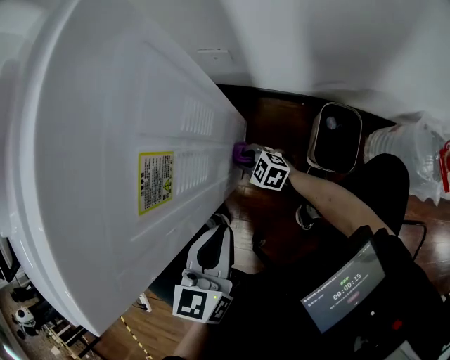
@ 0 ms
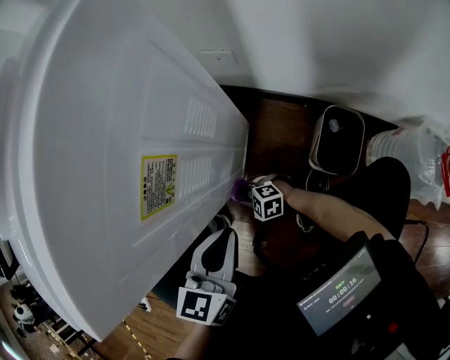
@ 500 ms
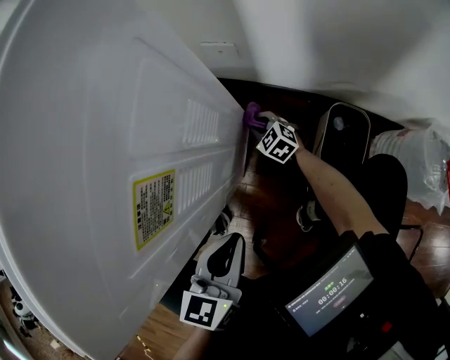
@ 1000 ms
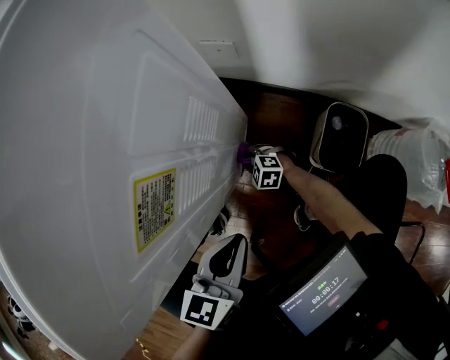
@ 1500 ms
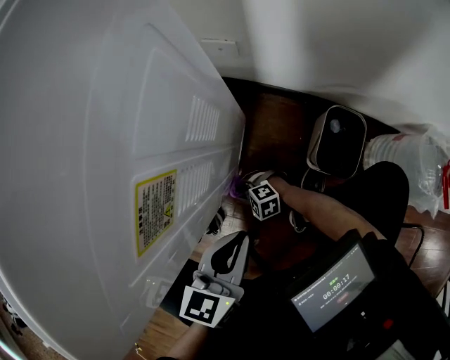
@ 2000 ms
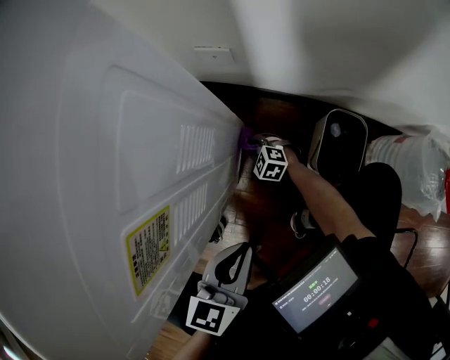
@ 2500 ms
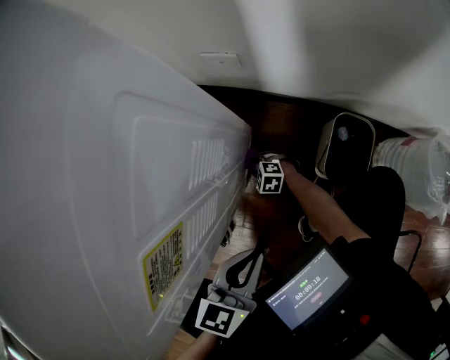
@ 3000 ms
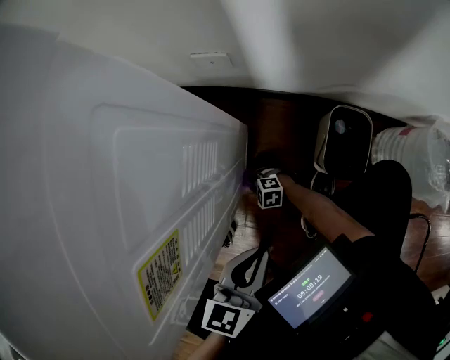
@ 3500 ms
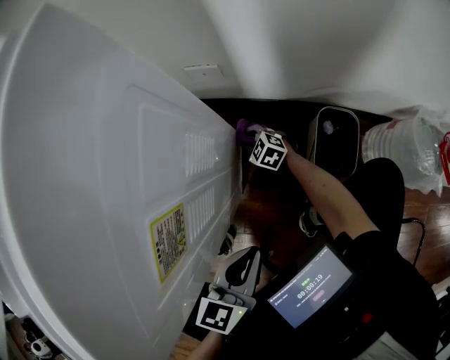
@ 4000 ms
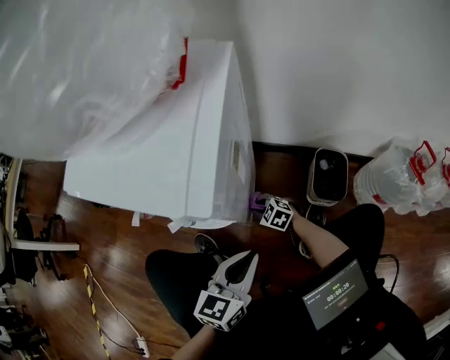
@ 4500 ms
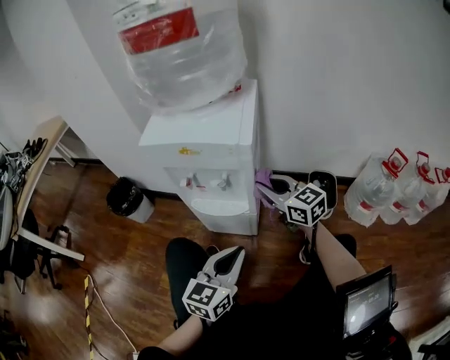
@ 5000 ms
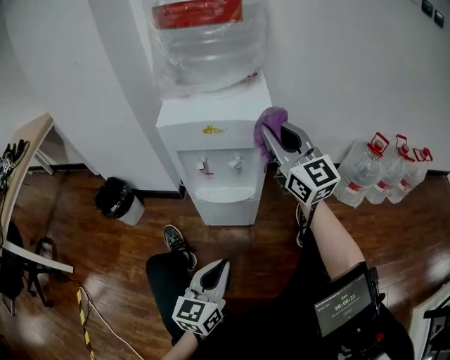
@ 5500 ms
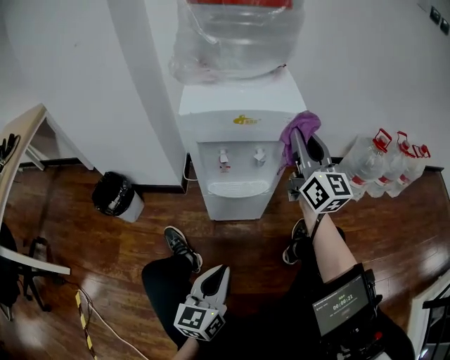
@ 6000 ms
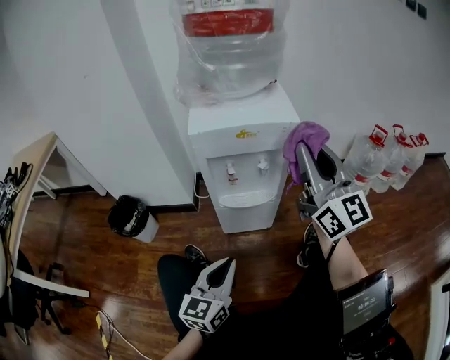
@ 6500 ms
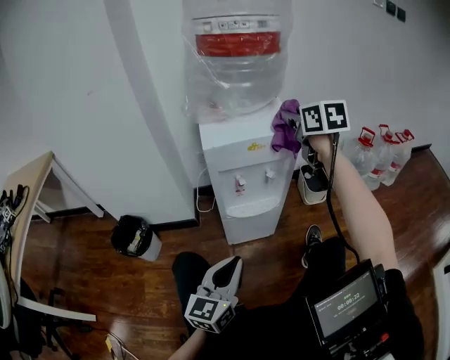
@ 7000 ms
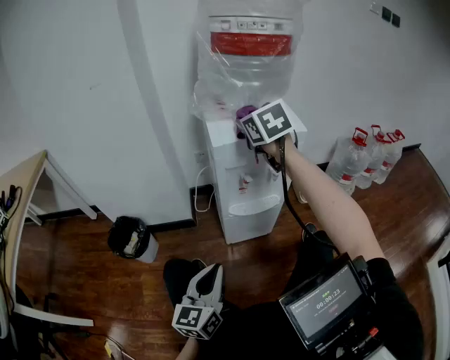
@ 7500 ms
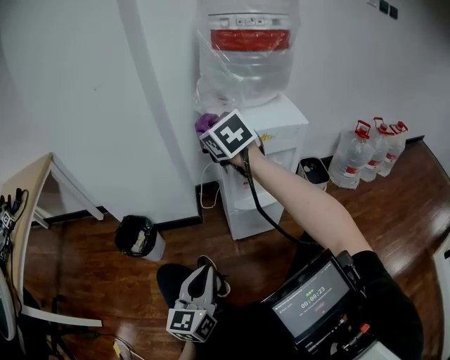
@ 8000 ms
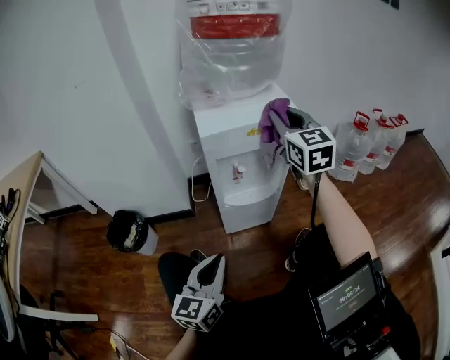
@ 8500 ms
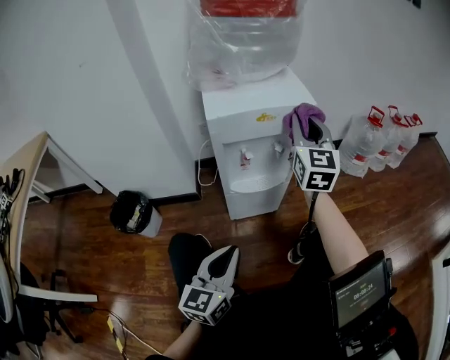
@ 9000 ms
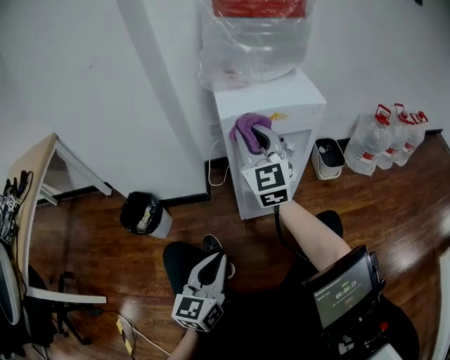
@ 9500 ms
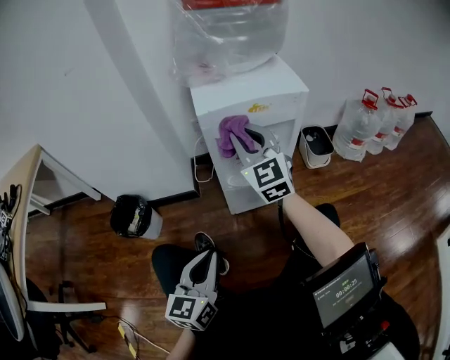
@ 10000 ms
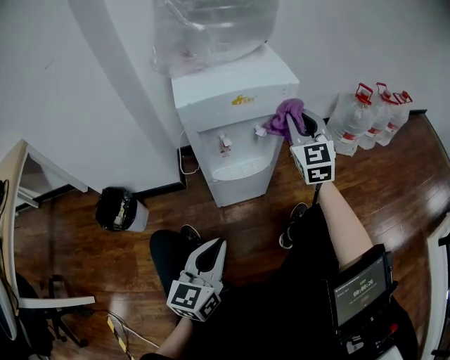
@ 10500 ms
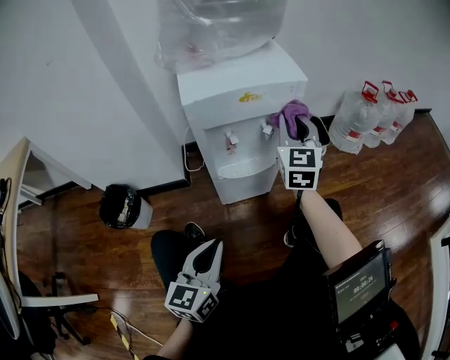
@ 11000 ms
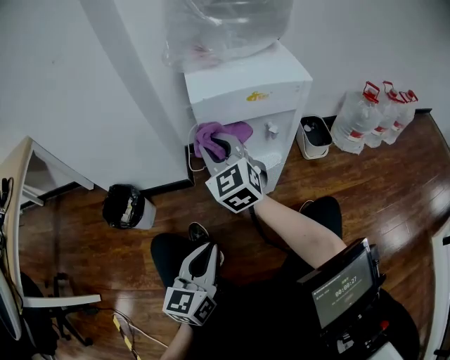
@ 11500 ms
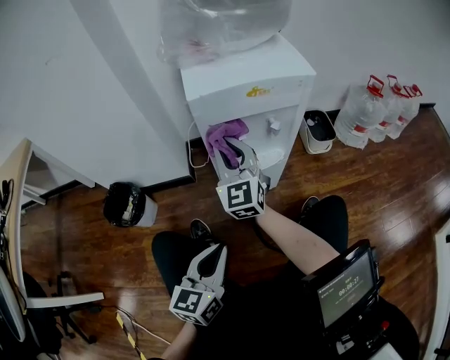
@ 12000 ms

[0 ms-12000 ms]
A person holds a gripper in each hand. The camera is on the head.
0 ms to 2000 ms: The right gripper changes place by some 15 cm, and turns by approximately 40 degrees.
2000 ms to 4000 ms: The right gripper reaches some 10 cm downward, then returns, and swivels about 40 degrees.
4000 ms to 6000 ms: The right gripper heads upward, covering approximately 60 cm, and tips its fingers upward by approximately 70 degrees. The left gripper moves approximately 40 cm, and swivels about 20 degrees.
6000 ms to 8000 ms: The right gripper goes about 30 cm to the left, and tips its fingers downward by about 40 degrees. The left gripper travels to the left and upward by roughly 20 cm.
8000 ms to 10000 ms: The right gripper travels to the right and downward by some 15 cm, and rotates about 30 degrees.
10000 ms to 12000 ms: The right gripper swings left and right, approximately 25 cm each way, with 2 reversals.

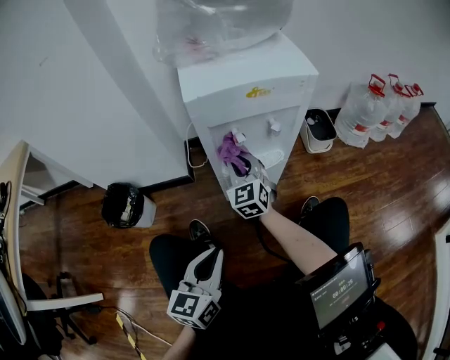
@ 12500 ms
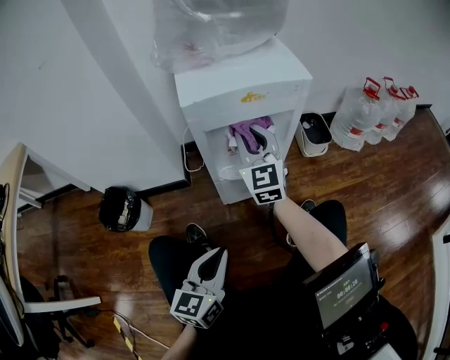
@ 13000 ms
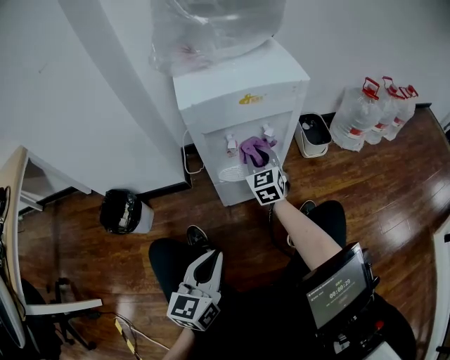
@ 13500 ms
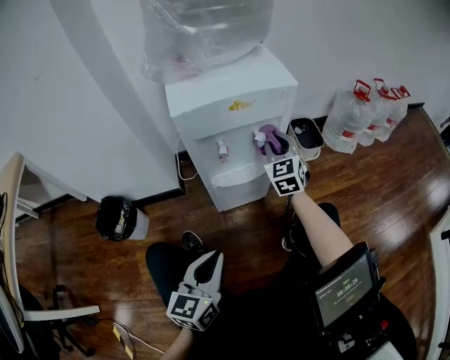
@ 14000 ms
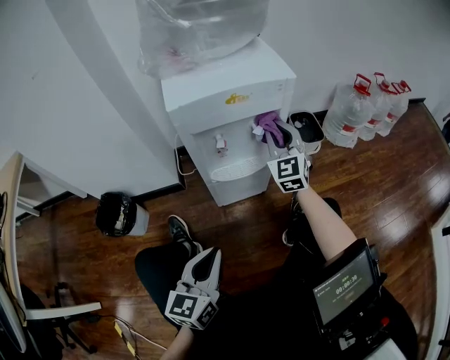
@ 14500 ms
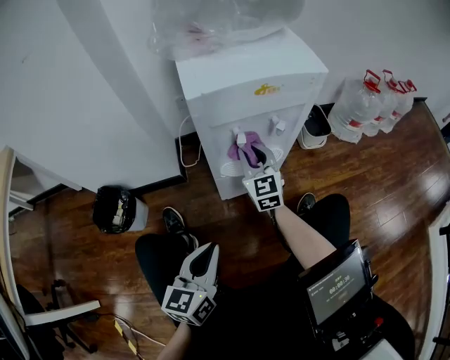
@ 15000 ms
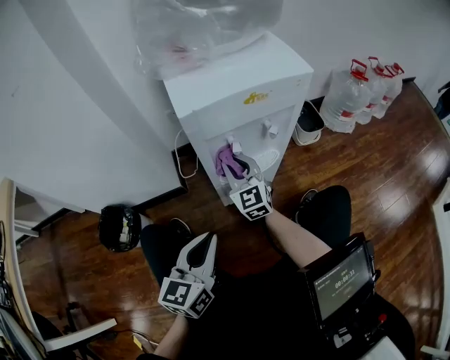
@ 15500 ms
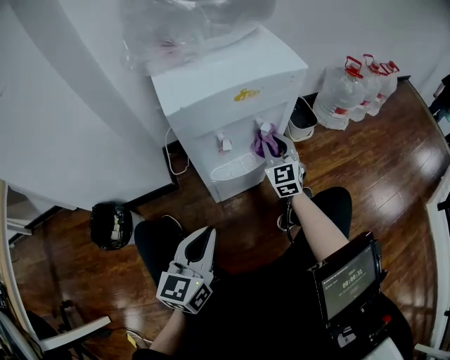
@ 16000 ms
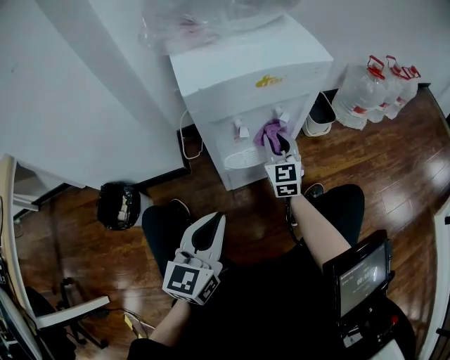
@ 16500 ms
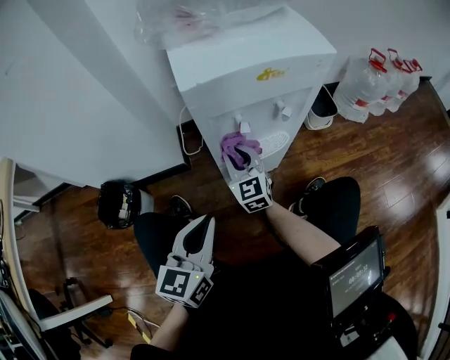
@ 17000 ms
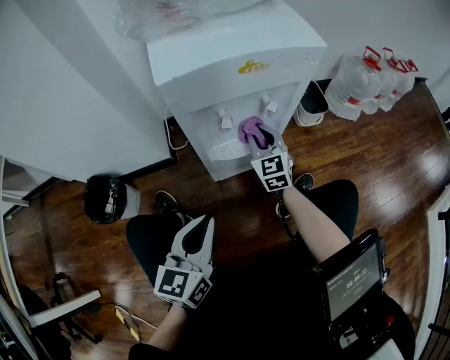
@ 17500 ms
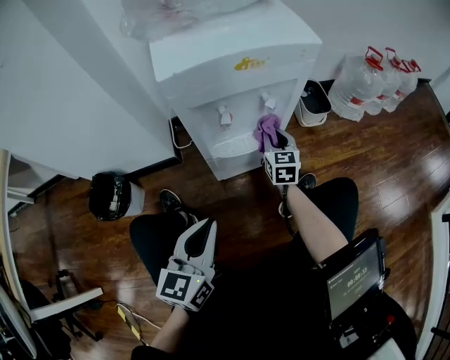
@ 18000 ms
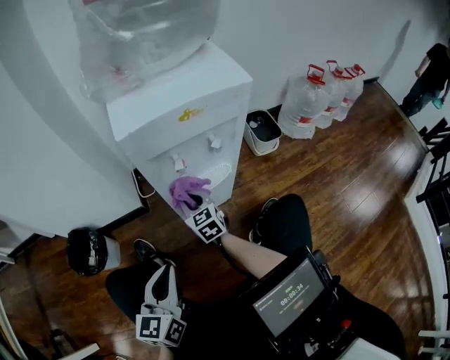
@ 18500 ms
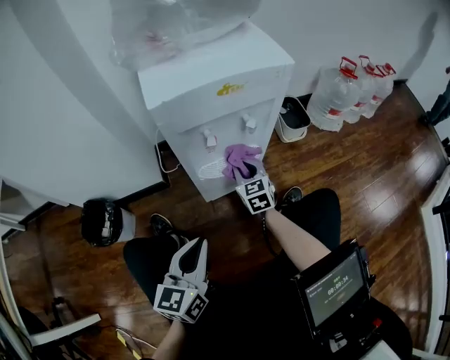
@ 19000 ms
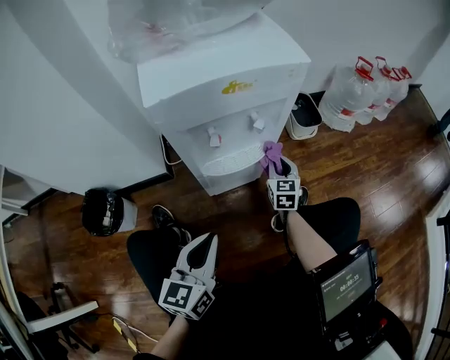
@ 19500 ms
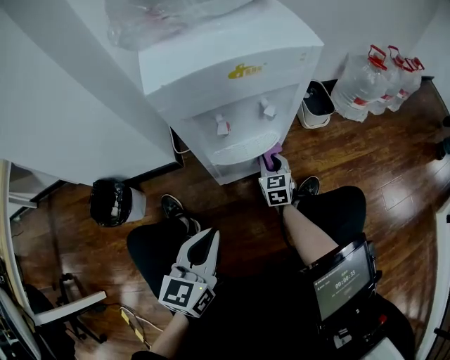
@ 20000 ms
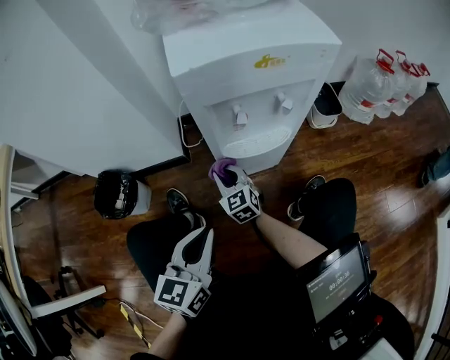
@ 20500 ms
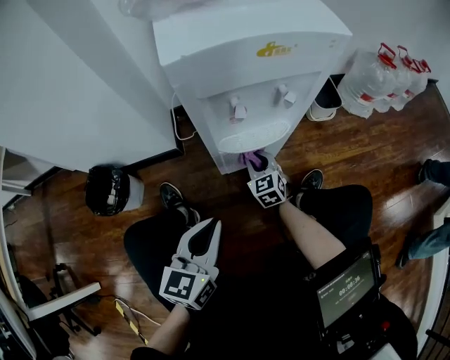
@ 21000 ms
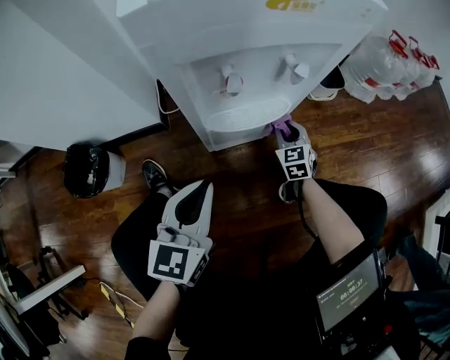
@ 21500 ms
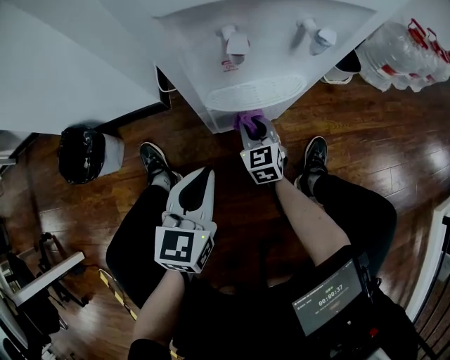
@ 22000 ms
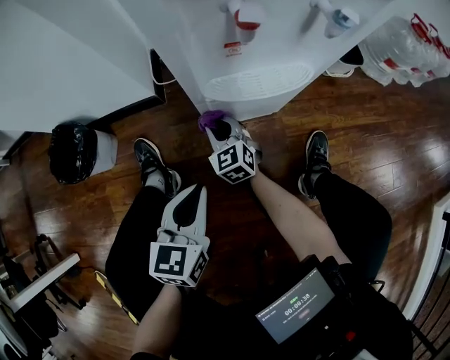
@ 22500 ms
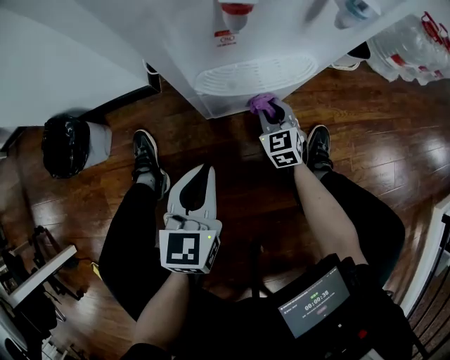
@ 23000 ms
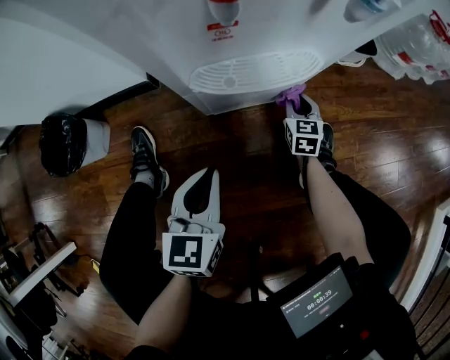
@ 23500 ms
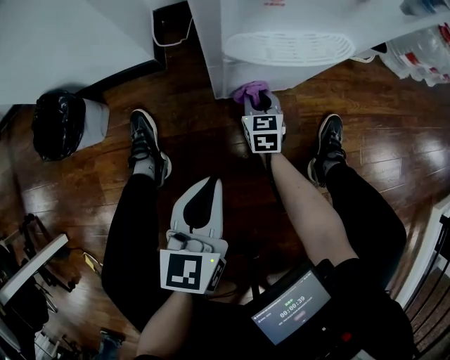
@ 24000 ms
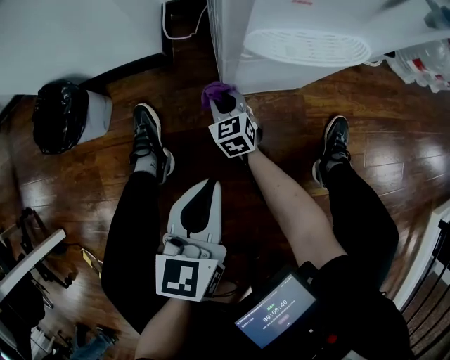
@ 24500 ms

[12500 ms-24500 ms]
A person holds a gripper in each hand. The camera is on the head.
12500 ms to 14500 ms: The right gripper heads to the right and upward, covering some 20 cm.
14500 ms to 16500 ms: The left gripper heads forward, covering about 10 cm. The right gripper swings left and right, approximately 15 cm each way, with 2 reversals.
16500 ms to 18500 ms: The right gripper moves left and right over some 20 cm, changing direction 2 times, and changes its angle by approximately 30 degrees, while the left gripper heads backward, covering roughly 5 cm.
18500 ms to 20500 ms: The right gripper travels to the right and back again, some 25 cm each way.
20500 ms to 22500 ms: The two grippers go about 15 cm downward. The right gripper moves approximately 25 cm to the right and comes back.
22500 ms to 24500 ms: The right gripper is displaced downward by some 10 cm, and travels to the right and back again, about 25 cm each way.

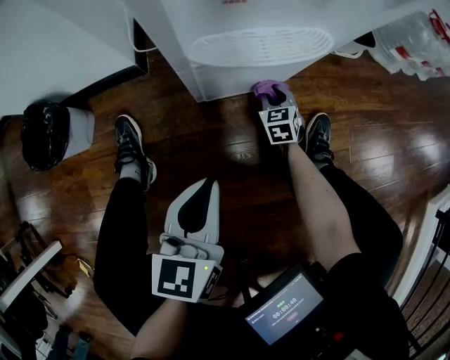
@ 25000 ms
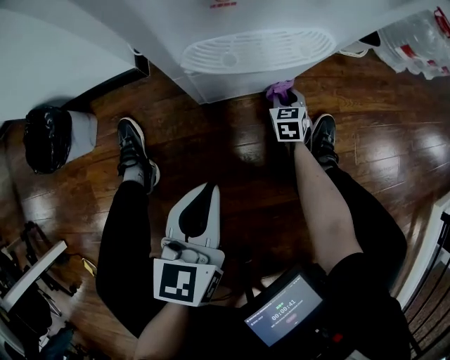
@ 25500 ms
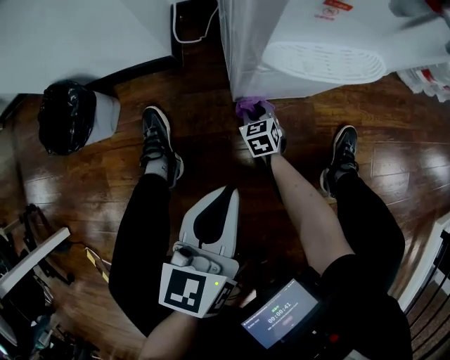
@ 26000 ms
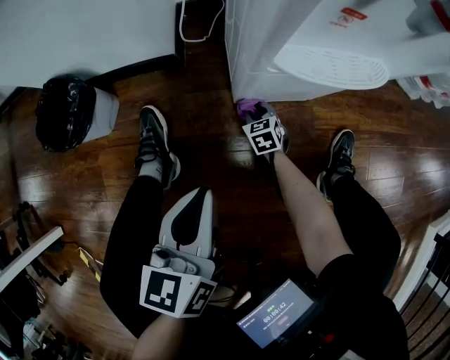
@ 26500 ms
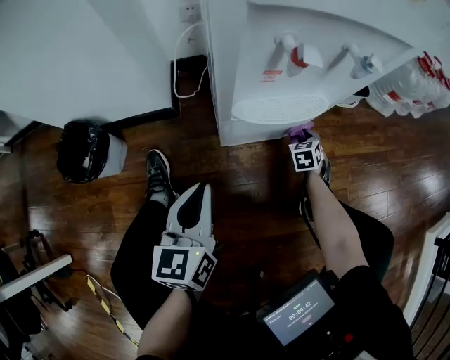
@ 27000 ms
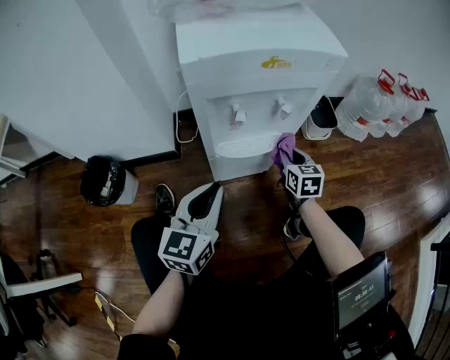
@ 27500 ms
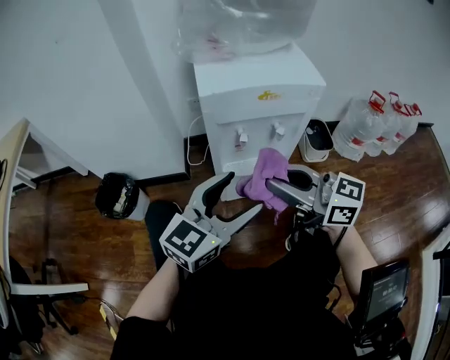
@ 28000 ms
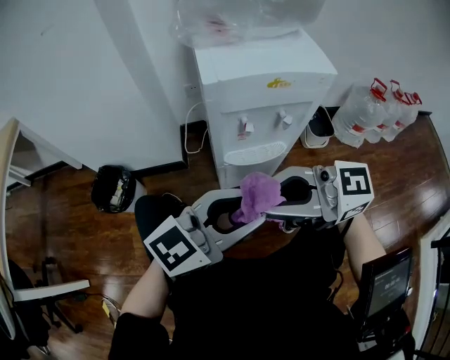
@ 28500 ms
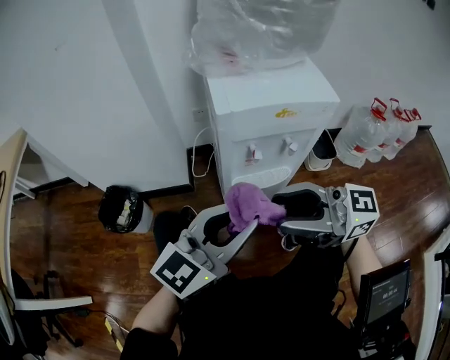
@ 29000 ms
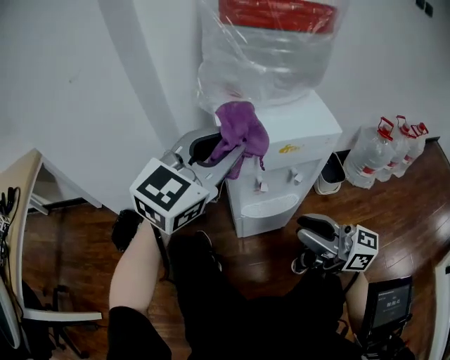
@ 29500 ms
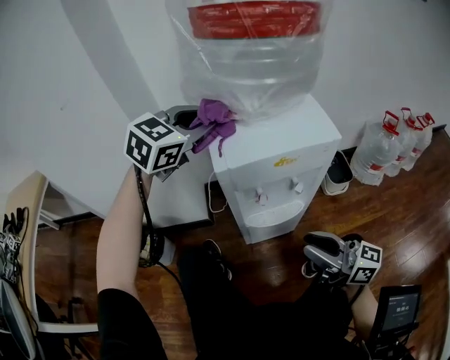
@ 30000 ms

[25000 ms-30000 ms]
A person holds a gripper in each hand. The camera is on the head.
25000 ms to 27500 ms: The right gripper is displaced upward by roughly 30 cm, and turns by approximately 20 degrees. The left gripper is displaced upward by about 15 cm.
27500 ms to 30000 ms: Both grippers travel together upward, roughly 25 cm. The left gripper turns by approximately 40 degrees, and opens and closes again. The right gripper tilts its fingers roughly 40 degrees upward.
